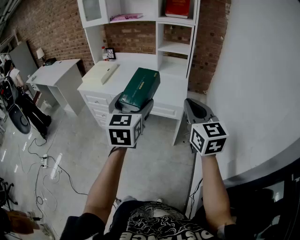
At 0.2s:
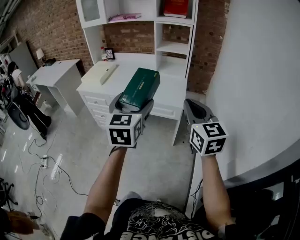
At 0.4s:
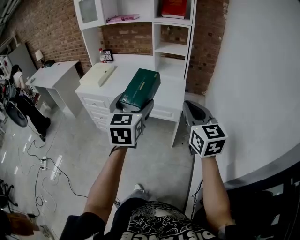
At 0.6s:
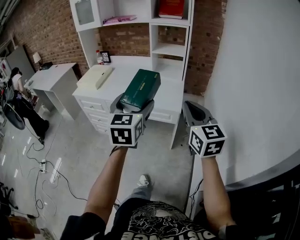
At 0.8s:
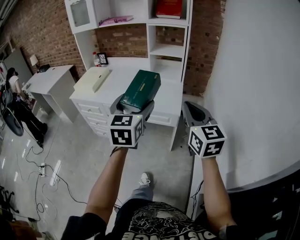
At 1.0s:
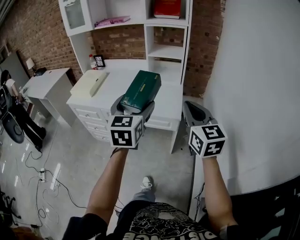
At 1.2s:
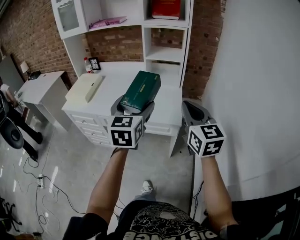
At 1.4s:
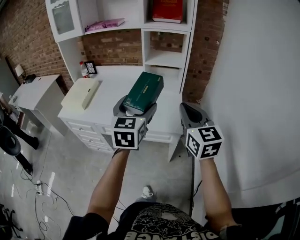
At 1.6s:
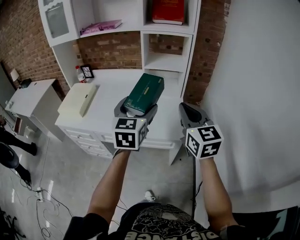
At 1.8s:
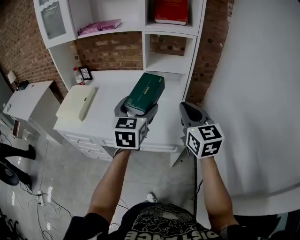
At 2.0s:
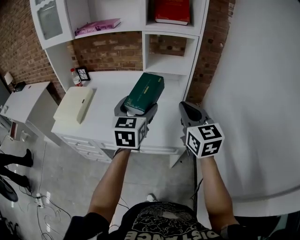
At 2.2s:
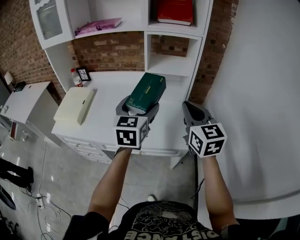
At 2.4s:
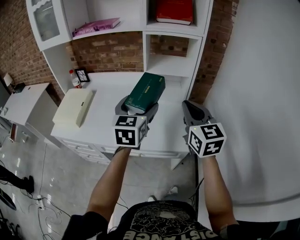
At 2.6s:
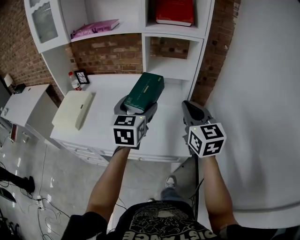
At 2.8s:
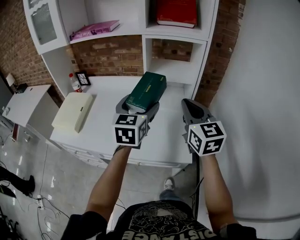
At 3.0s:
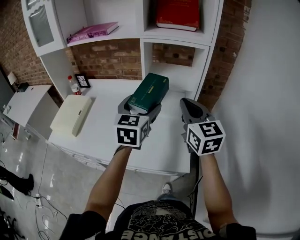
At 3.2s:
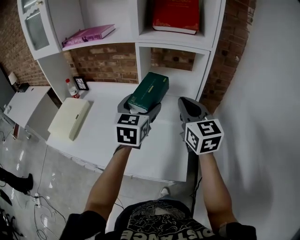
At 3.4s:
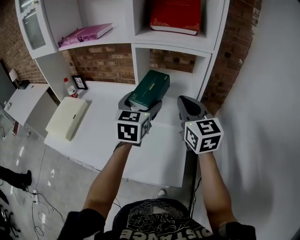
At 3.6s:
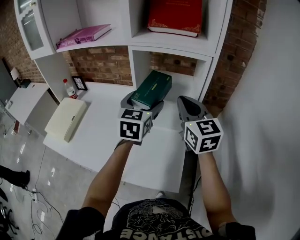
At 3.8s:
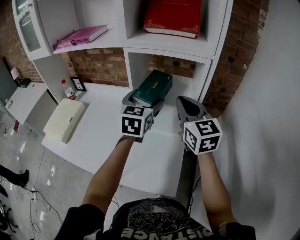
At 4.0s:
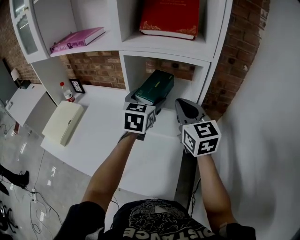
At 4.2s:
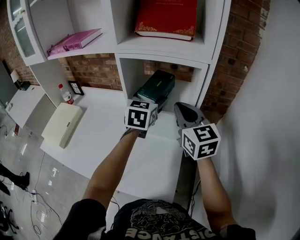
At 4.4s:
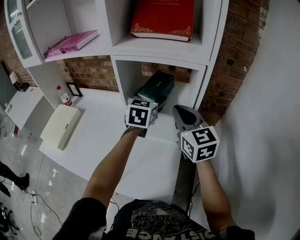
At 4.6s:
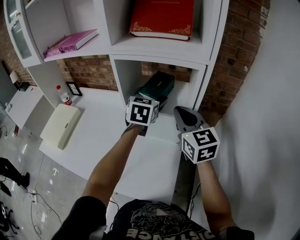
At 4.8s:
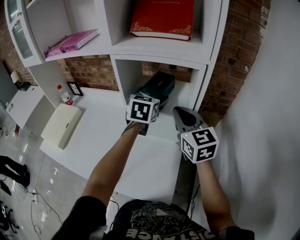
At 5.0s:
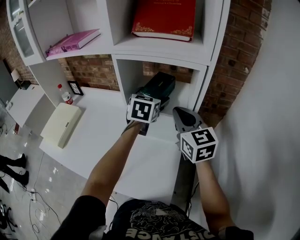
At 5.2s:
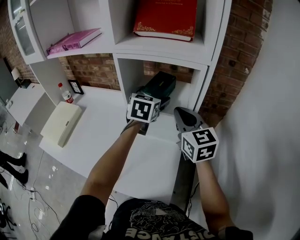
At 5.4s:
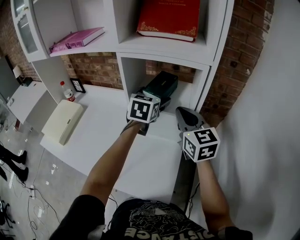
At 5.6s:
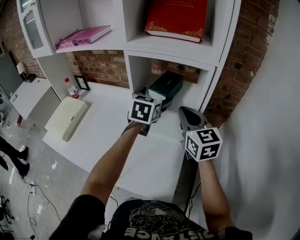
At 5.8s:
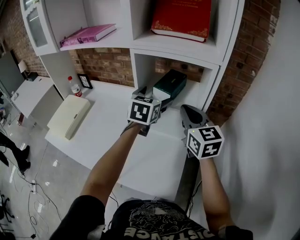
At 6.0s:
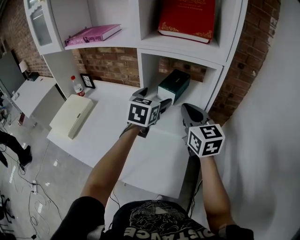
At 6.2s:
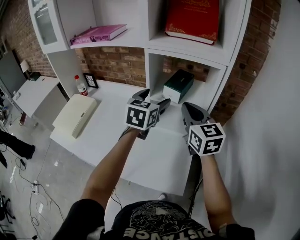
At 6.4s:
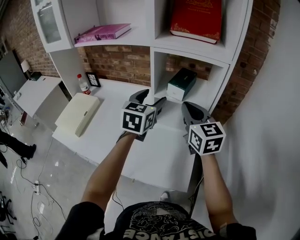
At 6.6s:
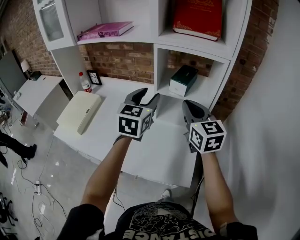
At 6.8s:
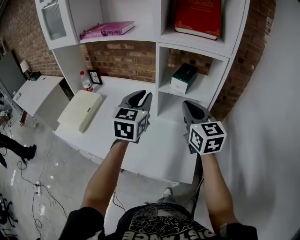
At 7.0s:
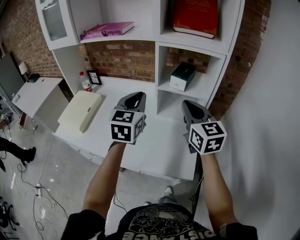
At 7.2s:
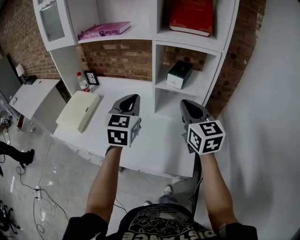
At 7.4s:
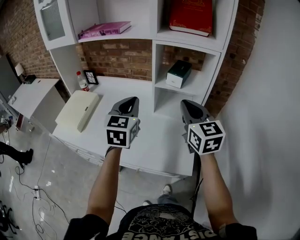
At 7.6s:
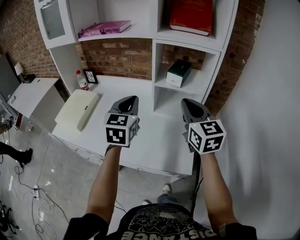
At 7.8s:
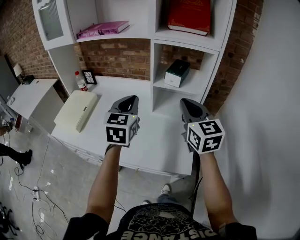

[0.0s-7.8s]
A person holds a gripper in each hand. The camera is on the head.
0.0s to 1.6s: The two grippers go approximately 30 cm forward.
1.6s to 3.2s: The grippers both shift forward by about 25 cm.
3.2s to 4.6s: The left gripper heads forward and to the right, covering roughly 20 cm, while the right gripper travels forward and to the right by about 15 cm.
4.6s to 6.2s: The right gripper travels to the left by roughly 5 cm, while the left gripper travels backward and to the left by about 10 cm.
6.2s to 7.8s: The right gripper moves backward, approximately 10 cm. The left gripper is displaced backward and to the left by about 20 cm, and closes up.

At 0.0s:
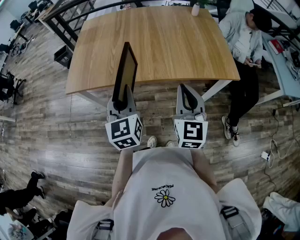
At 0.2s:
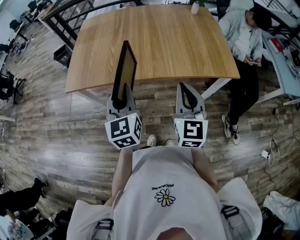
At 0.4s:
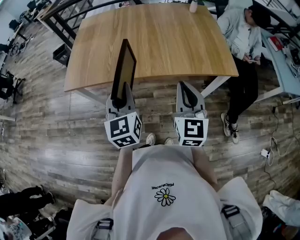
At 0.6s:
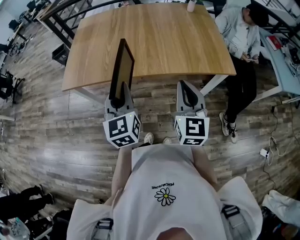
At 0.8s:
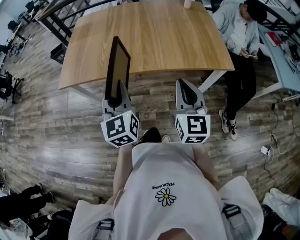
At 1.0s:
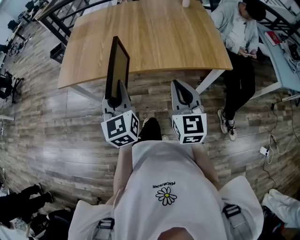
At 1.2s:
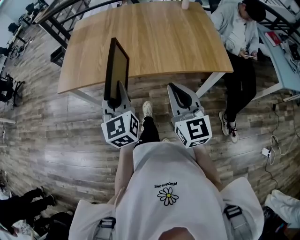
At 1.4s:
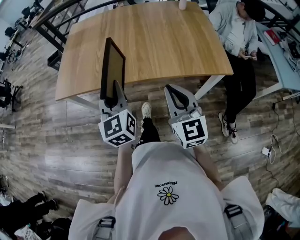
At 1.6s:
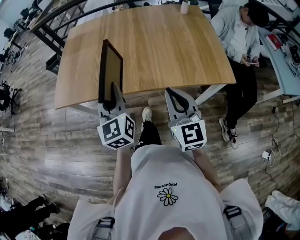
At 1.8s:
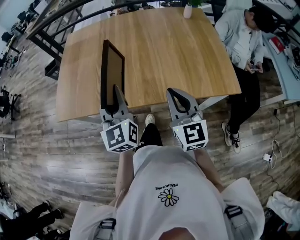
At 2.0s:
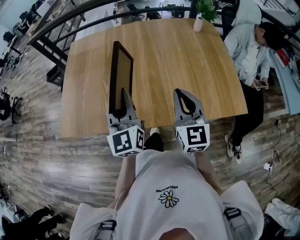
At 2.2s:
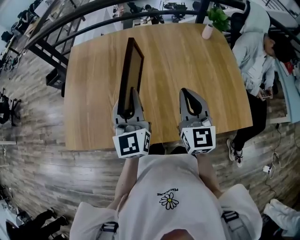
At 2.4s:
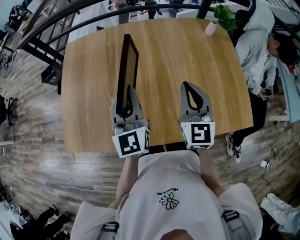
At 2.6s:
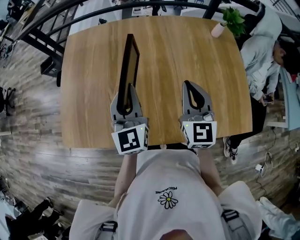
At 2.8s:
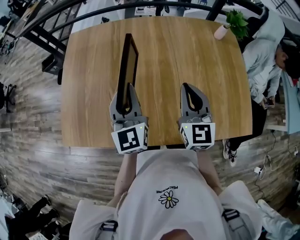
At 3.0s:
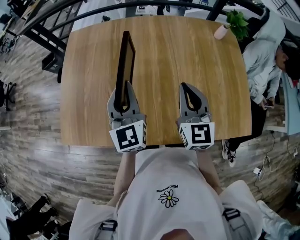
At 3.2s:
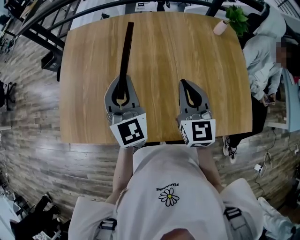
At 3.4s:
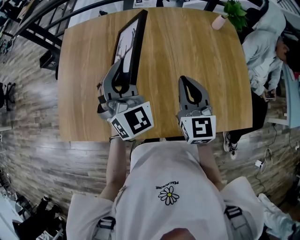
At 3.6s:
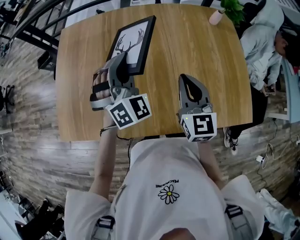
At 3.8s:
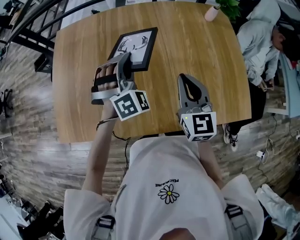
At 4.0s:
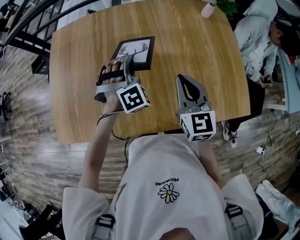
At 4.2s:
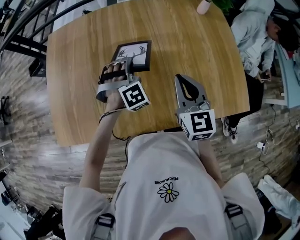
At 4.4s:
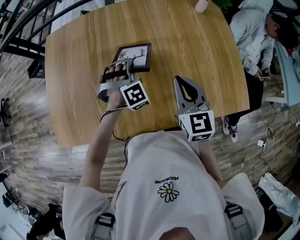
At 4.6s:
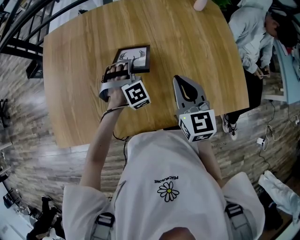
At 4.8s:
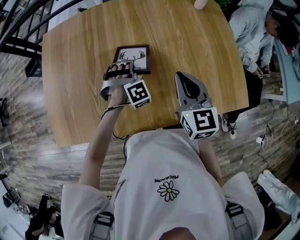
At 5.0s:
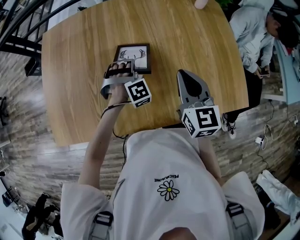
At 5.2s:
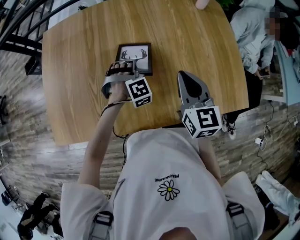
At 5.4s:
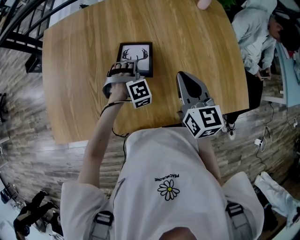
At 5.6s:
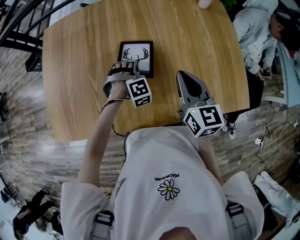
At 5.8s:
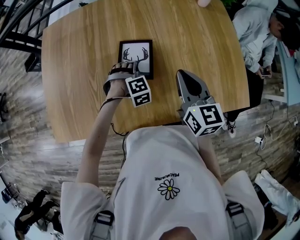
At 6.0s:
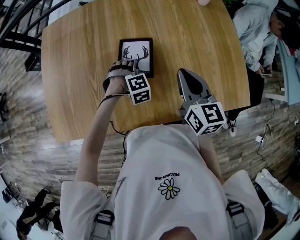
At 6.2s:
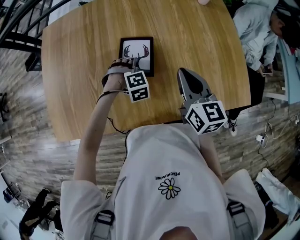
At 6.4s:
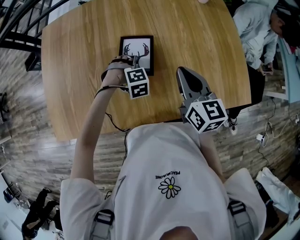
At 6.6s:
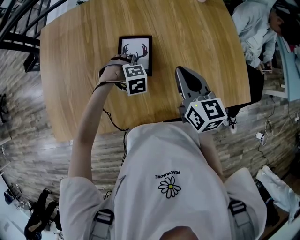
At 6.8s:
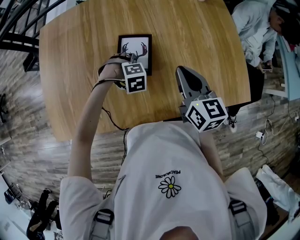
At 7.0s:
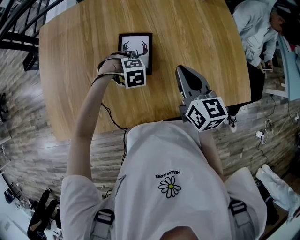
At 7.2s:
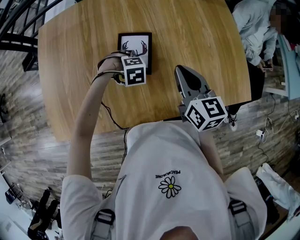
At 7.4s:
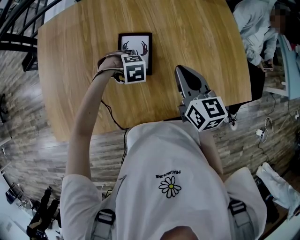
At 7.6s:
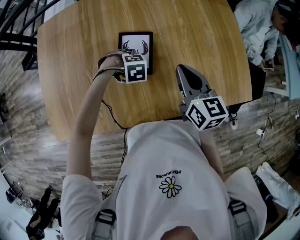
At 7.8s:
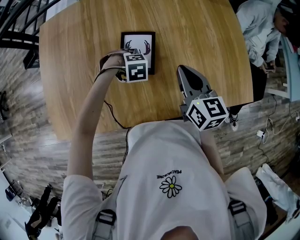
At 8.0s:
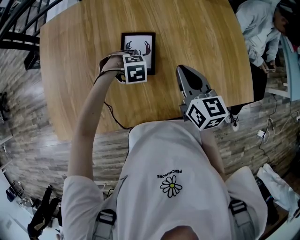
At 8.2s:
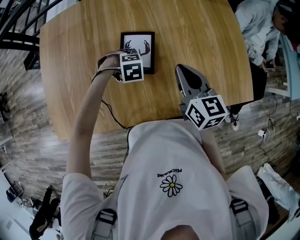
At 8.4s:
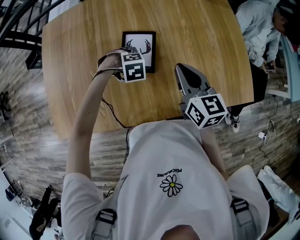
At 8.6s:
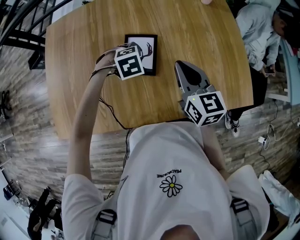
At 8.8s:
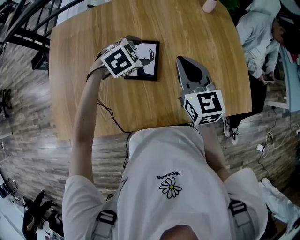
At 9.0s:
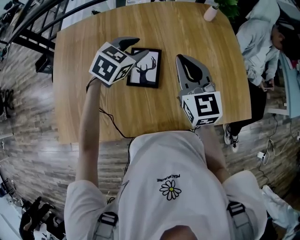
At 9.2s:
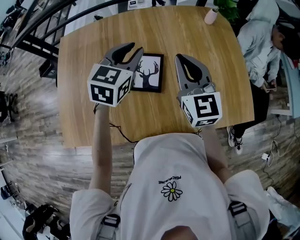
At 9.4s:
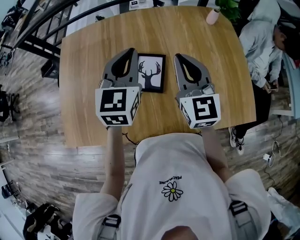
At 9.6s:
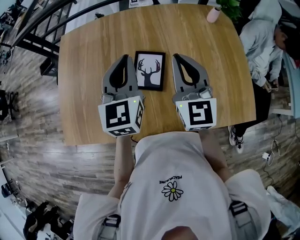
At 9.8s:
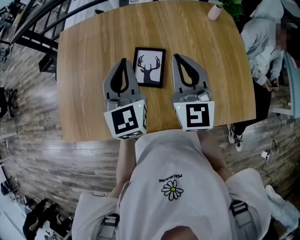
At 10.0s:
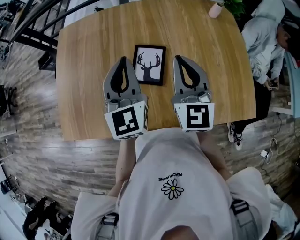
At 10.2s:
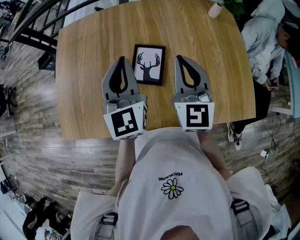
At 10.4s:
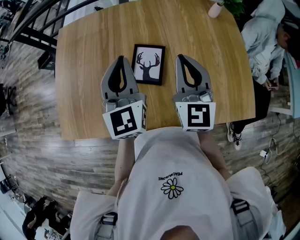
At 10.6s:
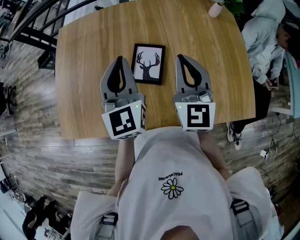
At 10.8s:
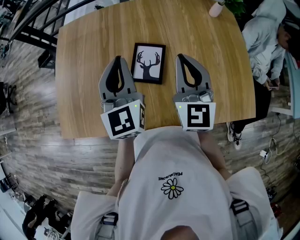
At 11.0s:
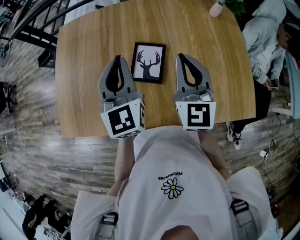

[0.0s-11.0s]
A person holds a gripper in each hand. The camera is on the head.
0.0s to 1.6s: The right gripper changes place by about 5 cm, while the left gripper travels forward by some 5 cm.
1.6s to 3.2s: Both grippers travel together forward, some 30 cm. The left gripper changes its angle by some 20 degrees.
3.2s to 4.8s: The left gripper shifts some 25 cm downward and to the right, and twists some 70 degrees clockwise, seen from behind; the right gripper changes place by some 5 cm.
4.8s to 6.2s: The left gripper shifts approximately 5 cm downward, swivels approximately 30 degrees, and opens its fingers.
6.2s to 7.8s: The left gripper rotates some 20 degrees.
7.8s to 9.4s: The right gripper heads upward, covering approximately 10 cm, and turns by about 30 degrees, while the left gripper travels upward by approximately 30 cm, tips its fingers upward by some 70 degrees, and closes.
9.4s to 11.0s: The left gripper moves approximately 5 cm, and changes its angle by about 20 degrees.

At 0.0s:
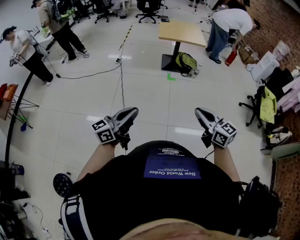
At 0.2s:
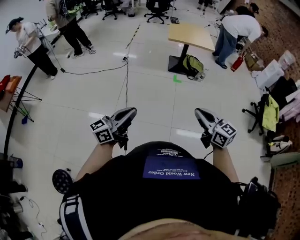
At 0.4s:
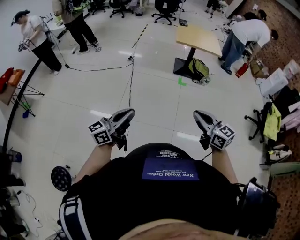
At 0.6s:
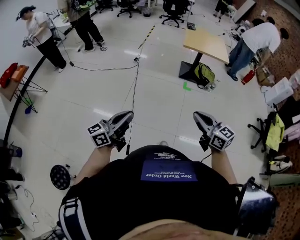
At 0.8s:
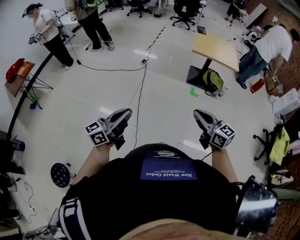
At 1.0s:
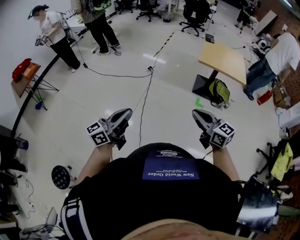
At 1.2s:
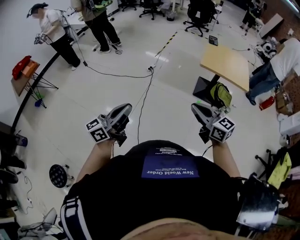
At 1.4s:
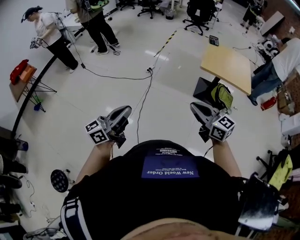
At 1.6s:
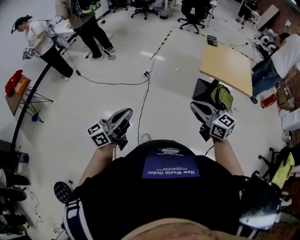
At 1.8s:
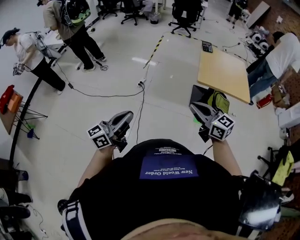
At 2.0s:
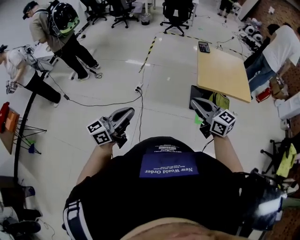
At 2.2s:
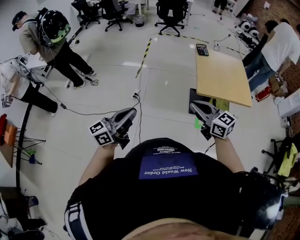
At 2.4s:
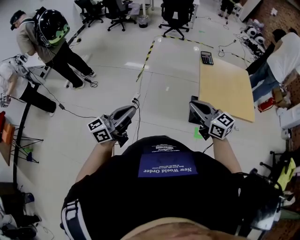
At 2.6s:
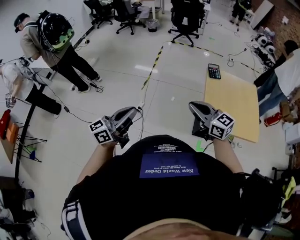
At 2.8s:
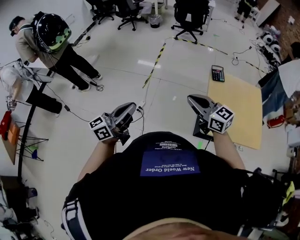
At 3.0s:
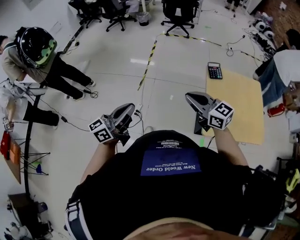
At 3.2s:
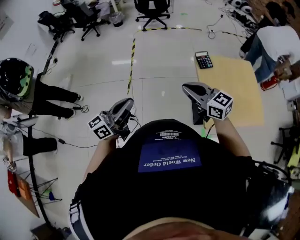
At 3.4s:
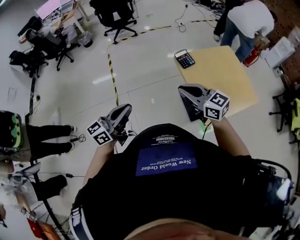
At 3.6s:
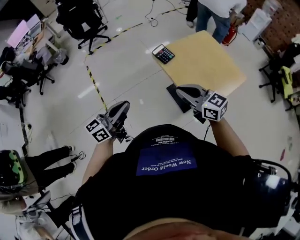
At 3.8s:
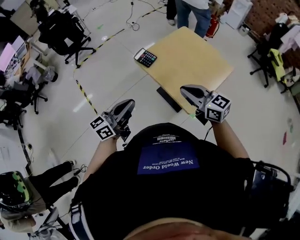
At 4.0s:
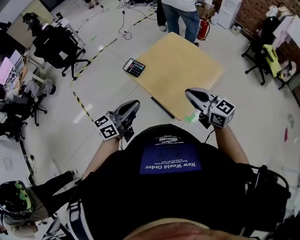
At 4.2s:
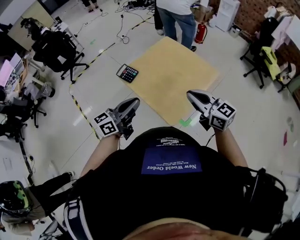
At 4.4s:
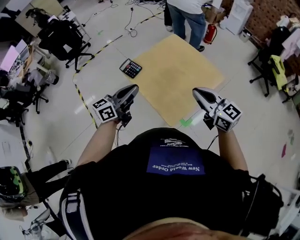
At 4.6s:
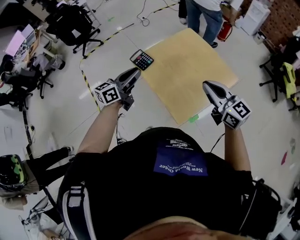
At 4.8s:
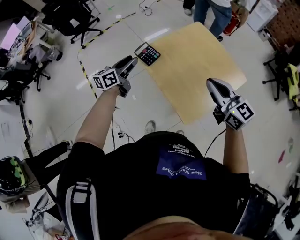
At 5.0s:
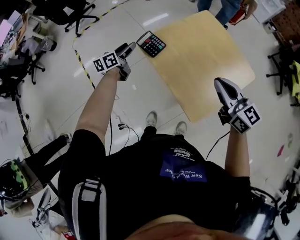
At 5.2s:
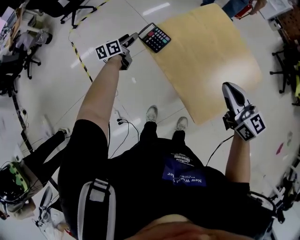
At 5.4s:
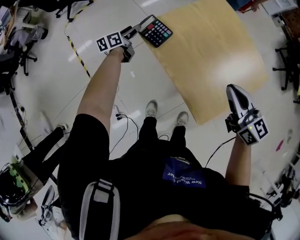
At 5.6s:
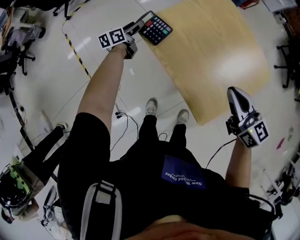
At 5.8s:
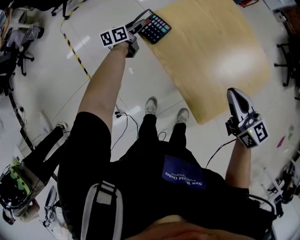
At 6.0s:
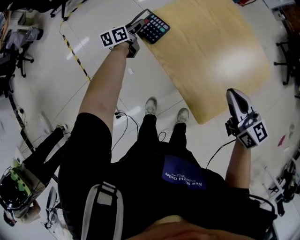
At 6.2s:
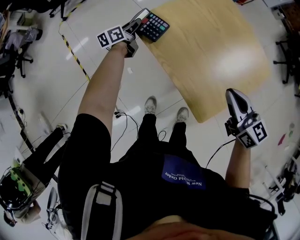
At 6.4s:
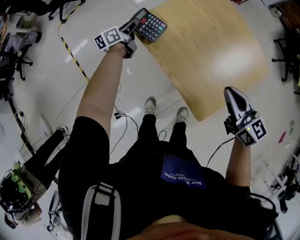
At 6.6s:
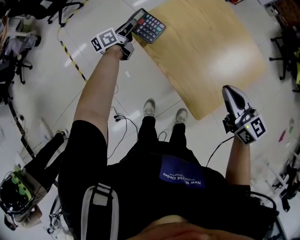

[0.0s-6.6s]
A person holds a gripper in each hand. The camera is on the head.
0.0s to 1.6s: The pair of grippers is taken forward, about 60 cm. The right gripper rotates roughly 20 degrees.
1.6s to 3.2s: Both grippers are carried forward, approximately 80 cm. The left gripper changes its angle by some 20 degrees.
3.2s to 5.0s: The left gripper changes place by about 60 cm, swivels approximately 30 degrees, and opens. The right gripper changes place by roughly 35 cm, and rotates about 50 degrees.
5.0s to 6.6s: The right gripper heads downward, covering about 10 cm. Meanwhile the left gripper shifts approximately 10 cm downward and forward, and closes its fingers.
